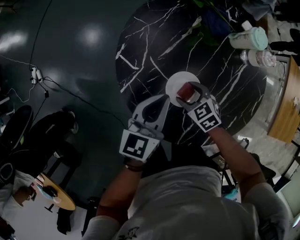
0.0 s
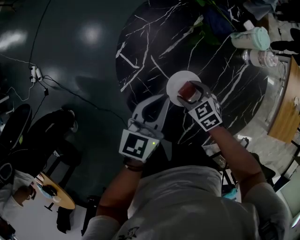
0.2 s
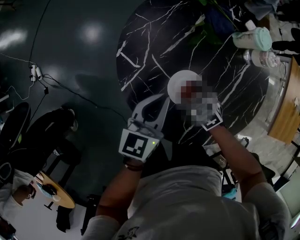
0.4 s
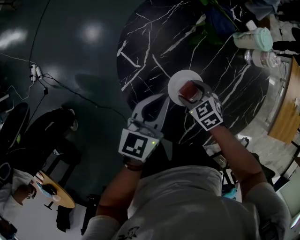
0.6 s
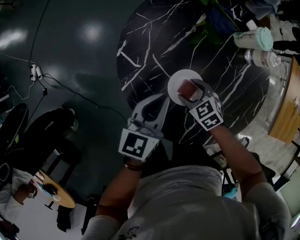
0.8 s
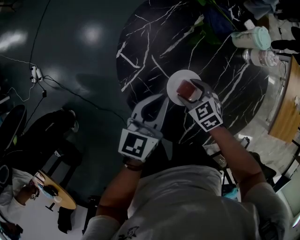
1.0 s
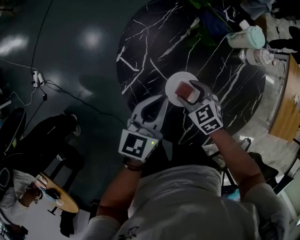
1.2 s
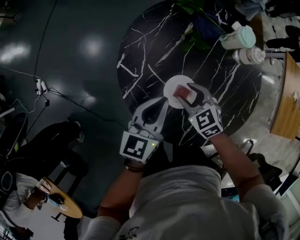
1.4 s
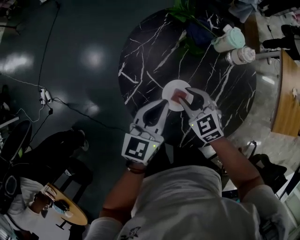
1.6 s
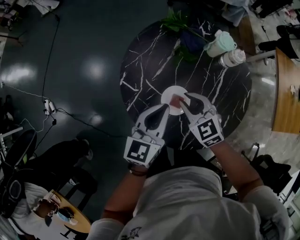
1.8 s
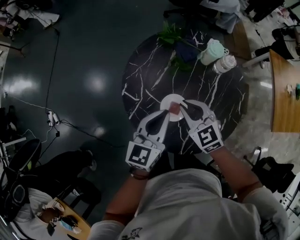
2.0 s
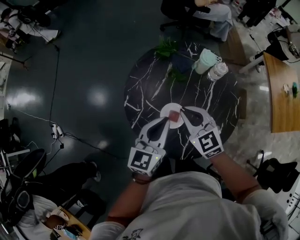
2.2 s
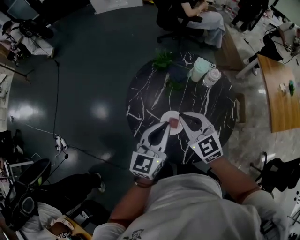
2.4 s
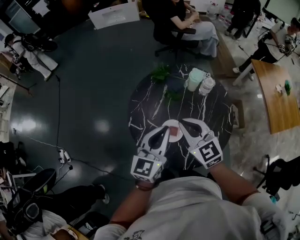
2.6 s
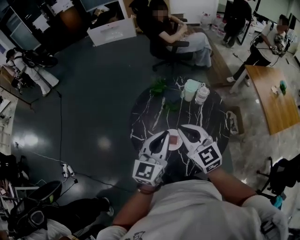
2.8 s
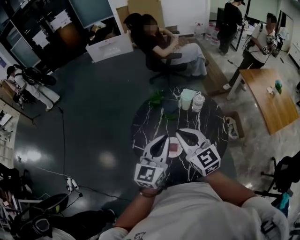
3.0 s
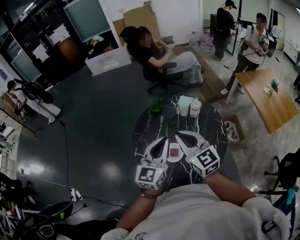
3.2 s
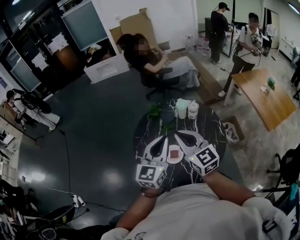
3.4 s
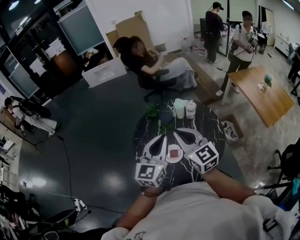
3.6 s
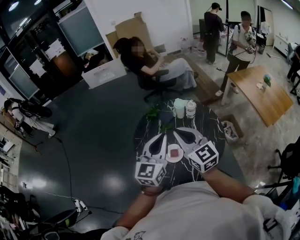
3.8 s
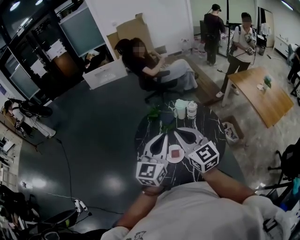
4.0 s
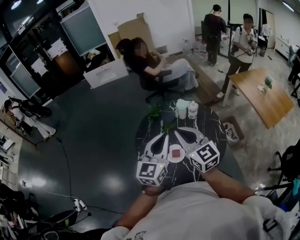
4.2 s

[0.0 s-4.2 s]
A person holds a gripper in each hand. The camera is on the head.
0.0 to 1.4 s: The right gripper moves upward, approximately 10 cm.
1.4 to 2.8 s: Both grippers travel together upward, roughly 30 cm. The left gripper swivels some 20 degrees; the right gripper tips its fingers upward by approximately 30 degrees, and closes its fingers.
2.8 to 4.2 s: Both grippers move upward and backward, roughly 15 cm.

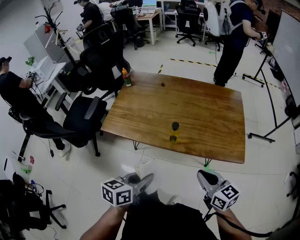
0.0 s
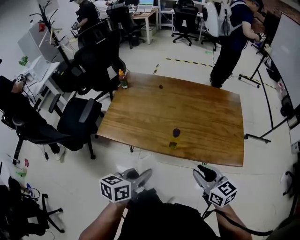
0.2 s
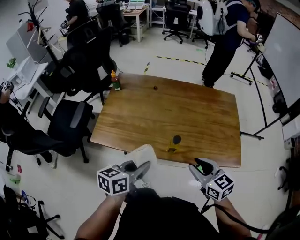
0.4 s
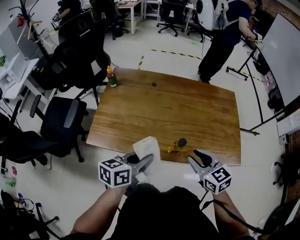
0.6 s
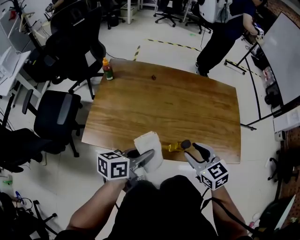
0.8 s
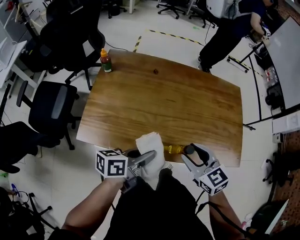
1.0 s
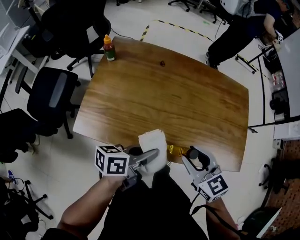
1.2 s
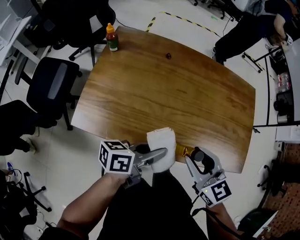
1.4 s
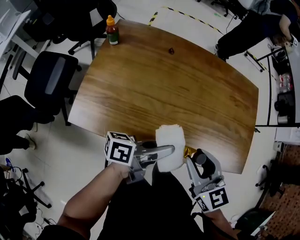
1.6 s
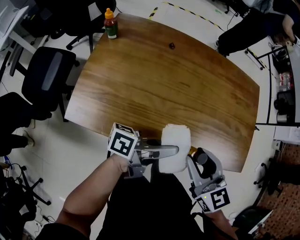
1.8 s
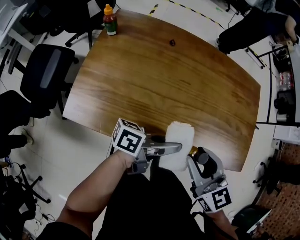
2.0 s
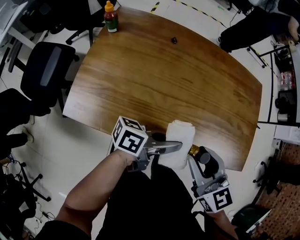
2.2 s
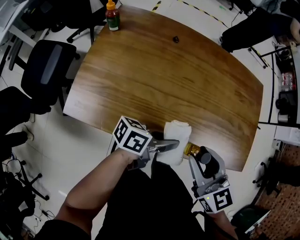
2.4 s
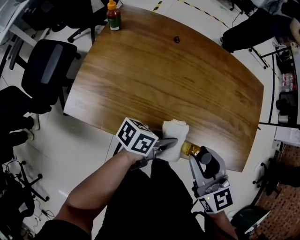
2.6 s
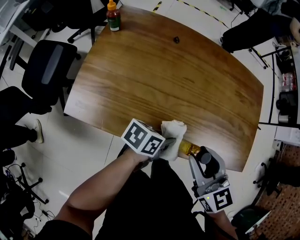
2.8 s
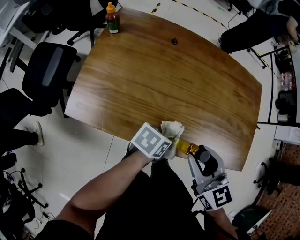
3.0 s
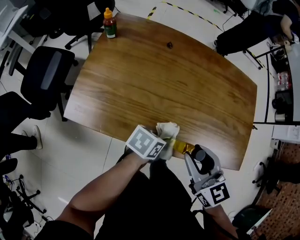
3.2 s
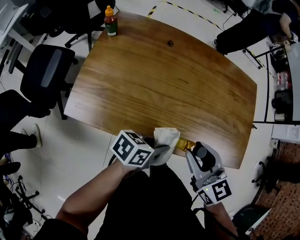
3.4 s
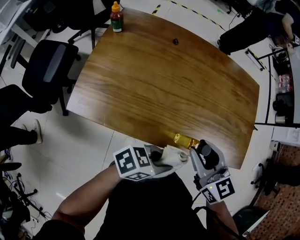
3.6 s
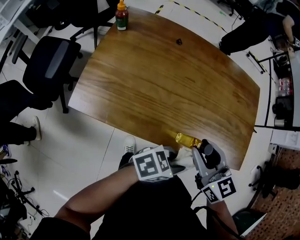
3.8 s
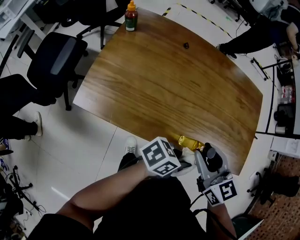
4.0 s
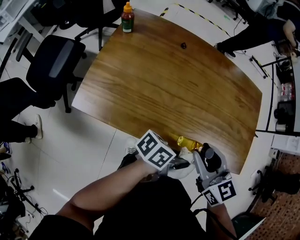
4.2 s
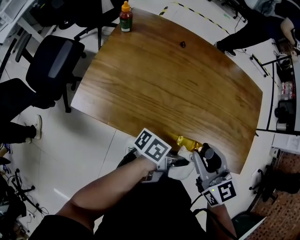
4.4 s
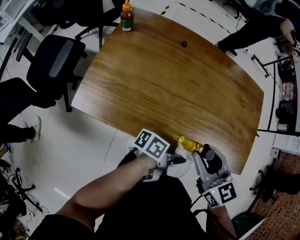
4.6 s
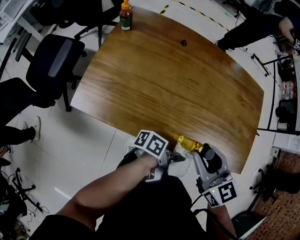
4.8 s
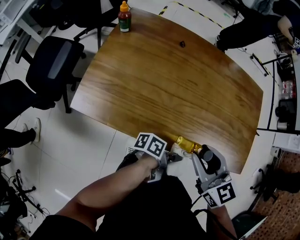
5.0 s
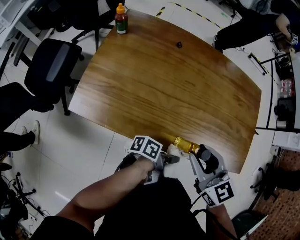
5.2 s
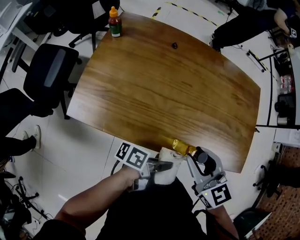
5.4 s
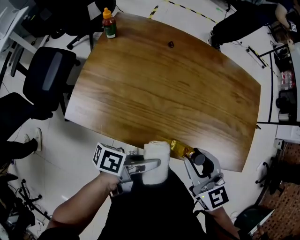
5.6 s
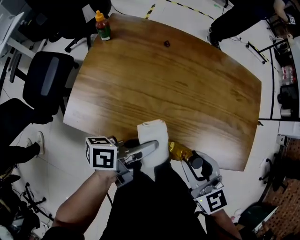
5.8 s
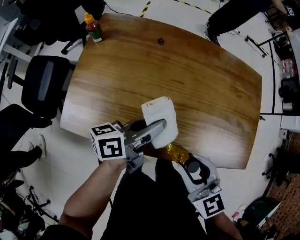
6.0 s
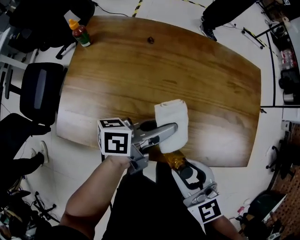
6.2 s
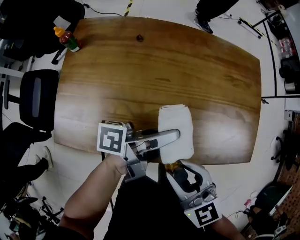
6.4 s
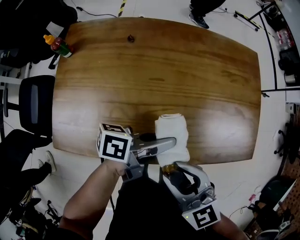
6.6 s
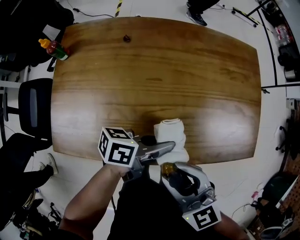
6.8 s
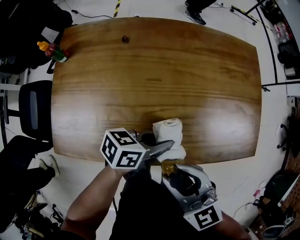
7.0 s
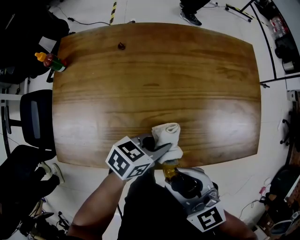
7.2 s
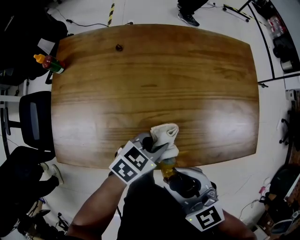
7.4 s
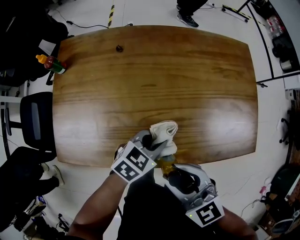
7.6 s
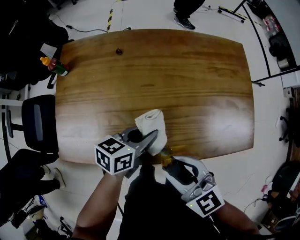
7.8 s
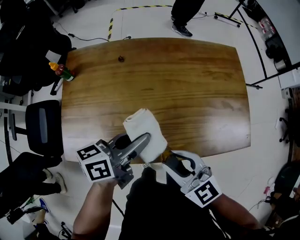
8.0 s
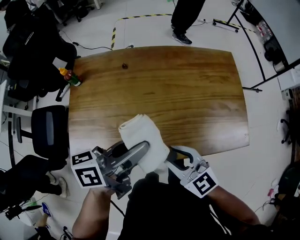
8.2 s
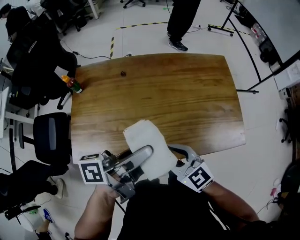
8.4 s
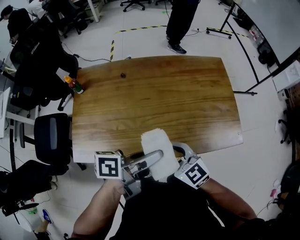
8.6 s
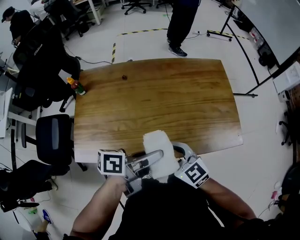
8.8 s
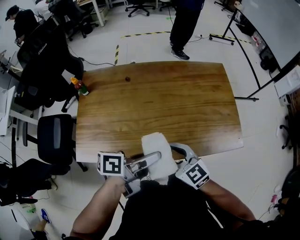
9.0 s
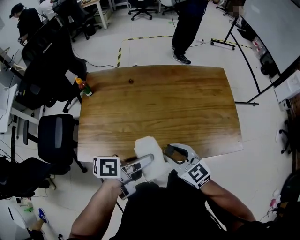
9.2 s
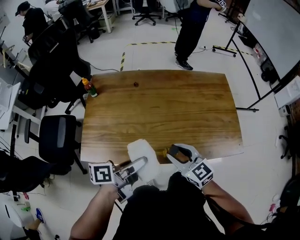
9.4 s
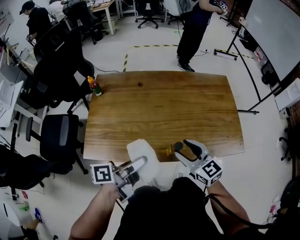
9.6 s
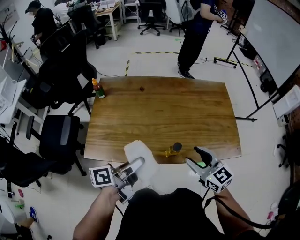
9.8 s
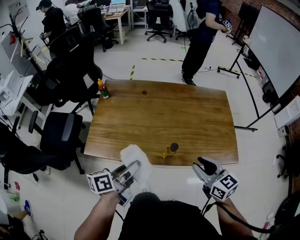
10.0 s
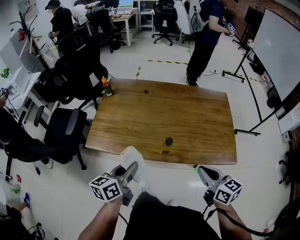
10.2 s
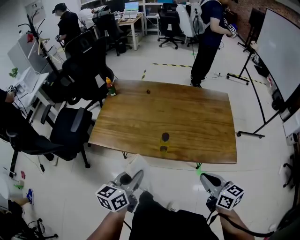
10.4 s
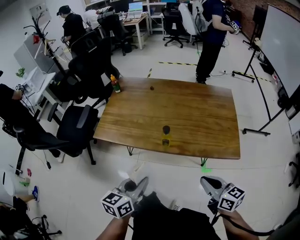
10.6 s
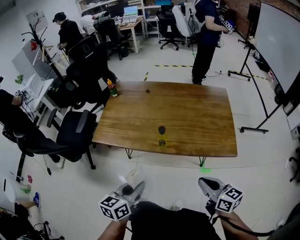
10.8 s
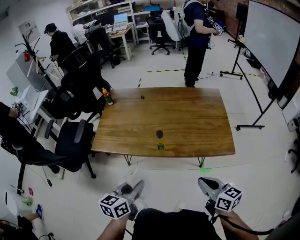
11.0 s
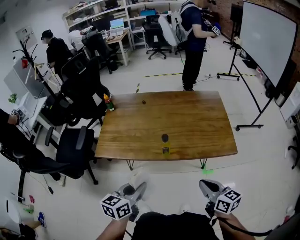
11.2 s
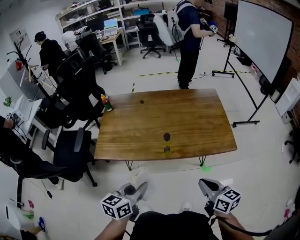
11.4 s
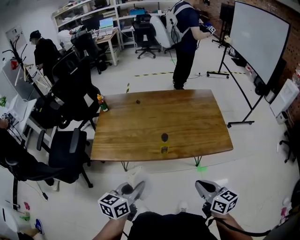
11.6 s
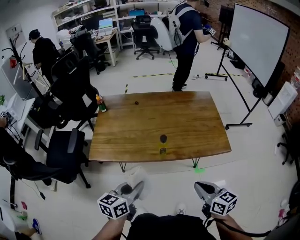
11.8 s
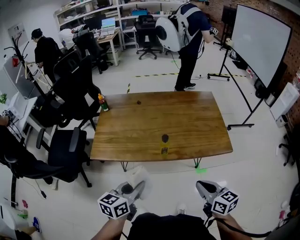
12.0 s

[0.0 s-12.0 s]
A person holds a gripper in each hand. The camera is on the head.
0.0 to 1.6 s: The left gripper moves forward, approximately 25 cm, and tips its fingers upward by some 30 degrees; the right gripper heads forward and to the left, covering approximately 25 cm, and opens its fingers.
1.6 to 3.0 s: The left gripper shifts some 10 cm downward, and points its fingers roughly 40 degrees further downward.
3.0 to 4.4 s: The left gripper goes some 10 cm upward and to the right, and angles its fingers upward, by roughly 40 degrees.
4.4 to 6.0 s: The left gripper moves to the left and forward, about 20 cm, and turns by about 40 degrees.
6.0 to 7.6 s: The left gripper goes approximately 15 cm downward and to the right, and tips its fingers downward by some 40 degrees.
7.6 to 9.0 s: The left gripper moves upward and backward, approximately 20 cm, and rolls counterclockwise, seen from behind, by some 50 degrees.
9.0 to 10.4 s: The left gripper moves backward, about 15 cm, and changes its angle by some 60 degrees, while the right gripper travels to the right and backward by about 25 cm, swivels about 30 degrees, and closes up.
10.4 to 12.0 s: The right gripper travels backward and to the left by about 10 cm.

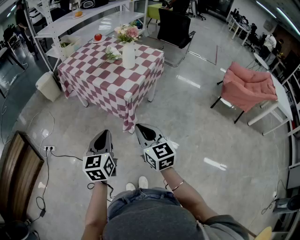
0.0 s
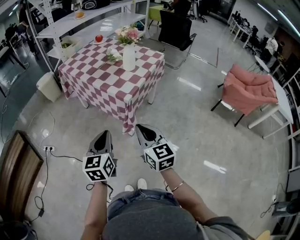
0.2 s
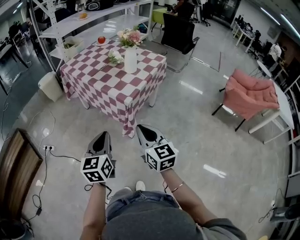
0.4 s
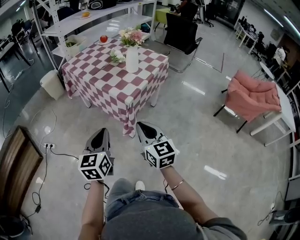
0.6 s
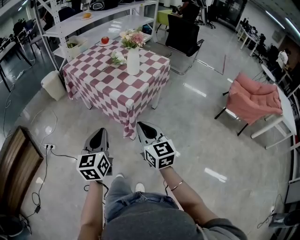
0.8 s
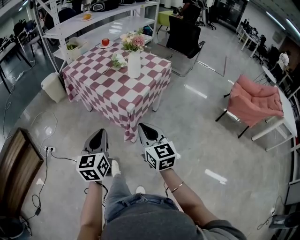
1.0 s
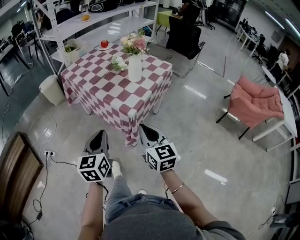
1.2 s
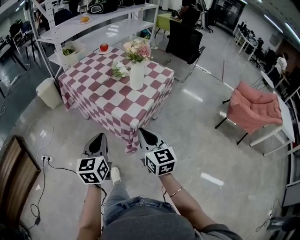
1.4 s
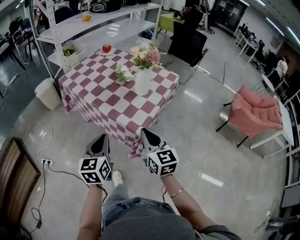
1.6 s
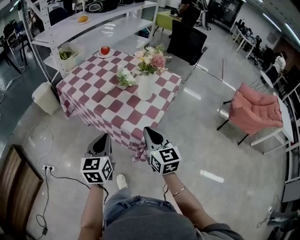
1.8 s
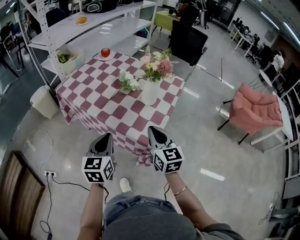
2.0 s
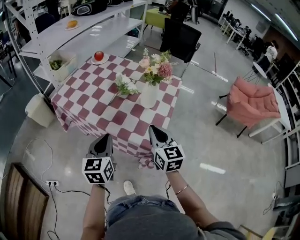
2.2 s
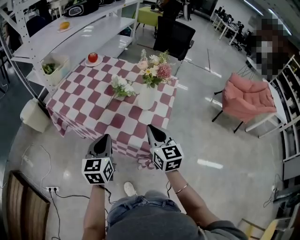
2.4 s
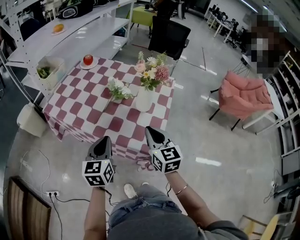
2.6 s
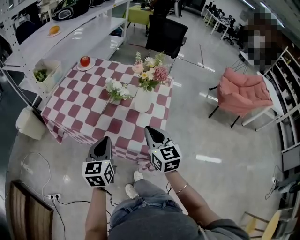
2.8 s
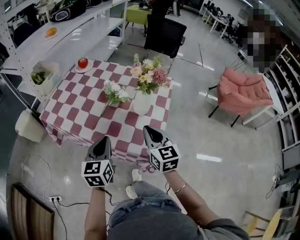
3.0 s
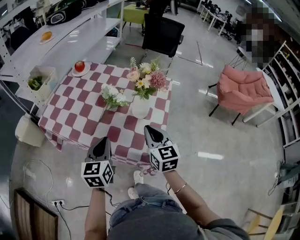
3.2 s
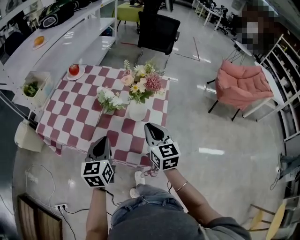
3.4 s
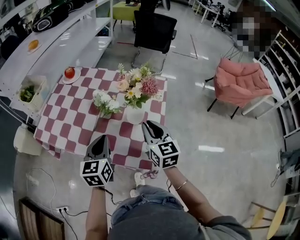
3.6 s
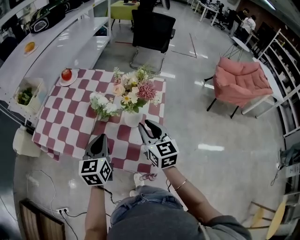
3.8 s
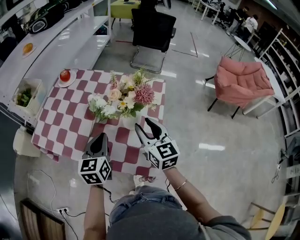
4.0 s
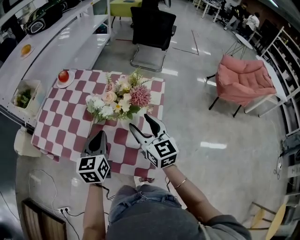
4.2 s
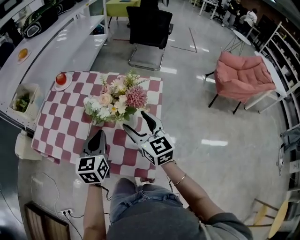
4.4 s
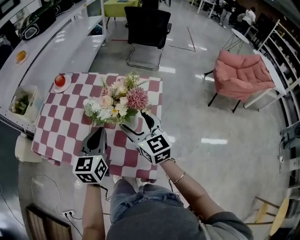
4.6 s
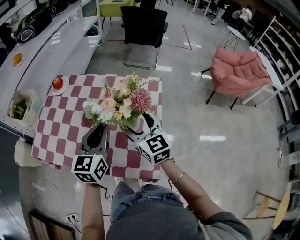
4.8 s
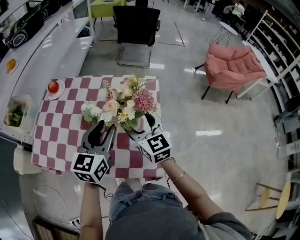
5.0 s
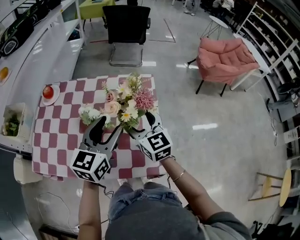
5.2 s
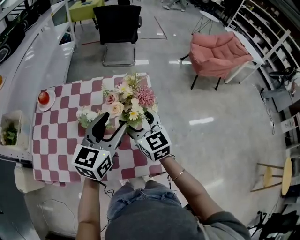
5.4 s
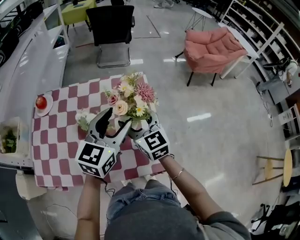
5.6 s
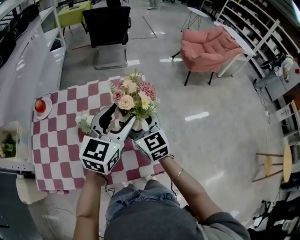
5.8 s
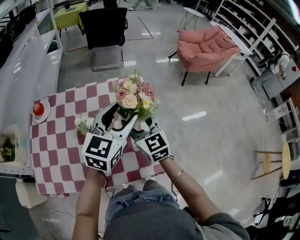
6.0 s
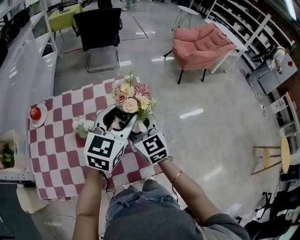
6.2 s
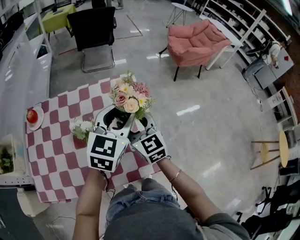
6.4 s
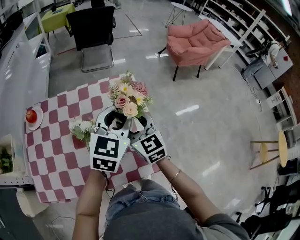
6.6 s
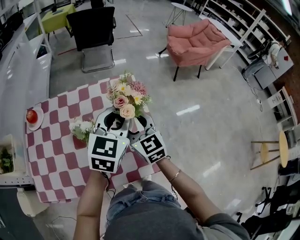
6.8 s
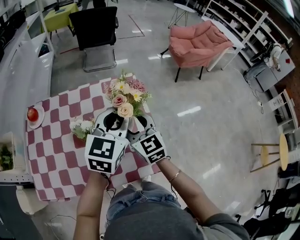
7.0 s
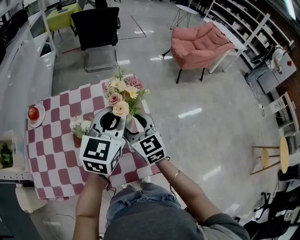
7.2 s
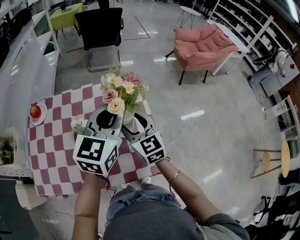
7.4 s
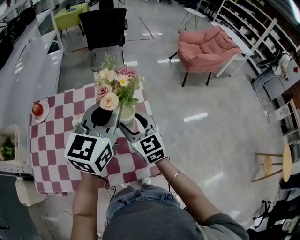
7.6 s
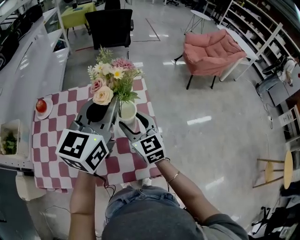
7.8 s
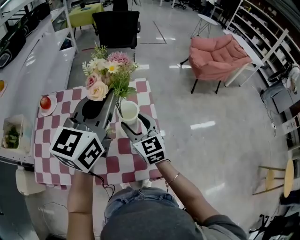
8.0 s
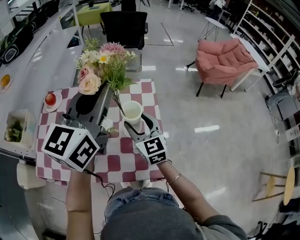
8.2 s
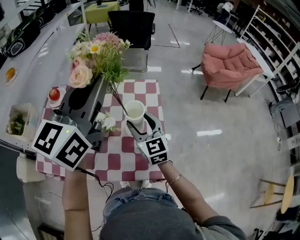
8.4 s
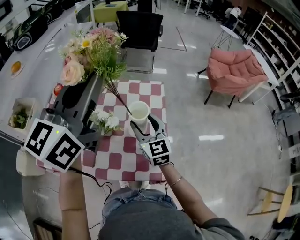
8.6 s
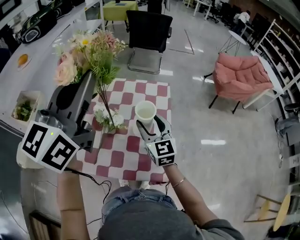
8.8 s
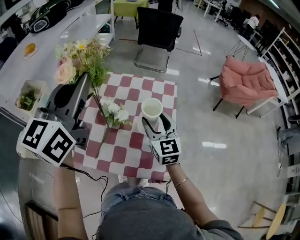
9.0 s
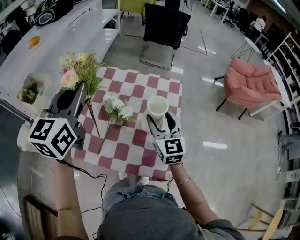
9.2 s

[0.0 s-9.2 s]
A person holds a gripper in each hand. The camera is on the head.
0.0 to 1.6 s: The two grippers go roughly 20 cm forward.
1.6 to 3.0 s: The grippers both shift forward by approximately 20 cm.
3.0 to 4.6 s: The left gripper is displaced forward and to the right by roughly 20 cm. Meanwhile the right gripper moves forward, approximately 15 cm, and opens up.
4.6 to 6.2 s: The right gripper changes its angle by approximately 20 degrees, while the left gripper moves roughly 15 cm, changes its angle by roughly 40 degrees, and opens up.
6.2 to 7.6 s: The left gripper moves upward, roughly 5 cm, and closes.
7.6 to 9.2 s: The left gripper heads to the left, covering approximately 20 cm, and turns by about 30 degrees.
